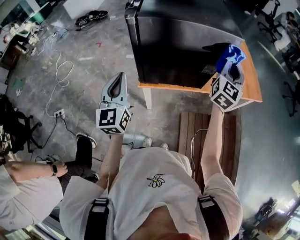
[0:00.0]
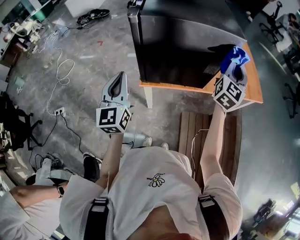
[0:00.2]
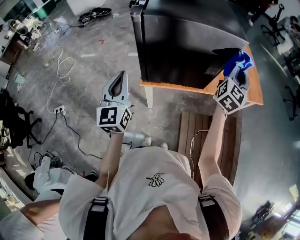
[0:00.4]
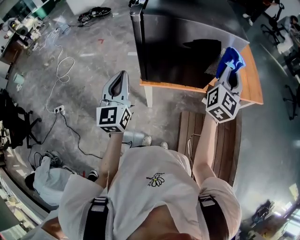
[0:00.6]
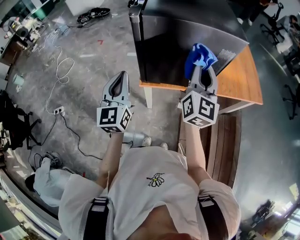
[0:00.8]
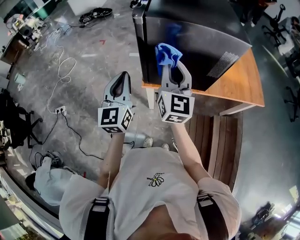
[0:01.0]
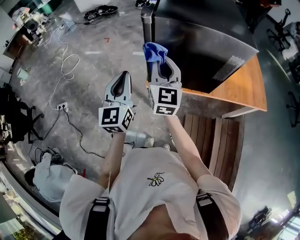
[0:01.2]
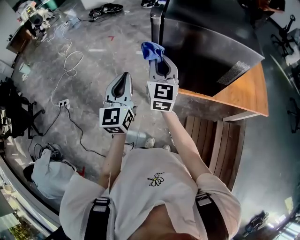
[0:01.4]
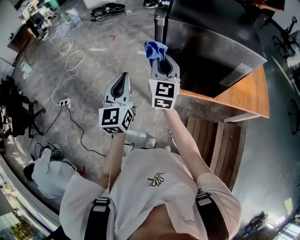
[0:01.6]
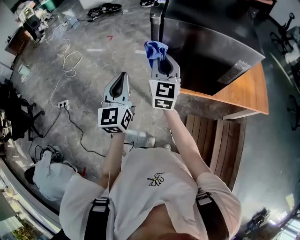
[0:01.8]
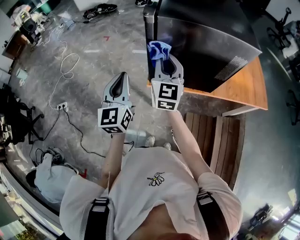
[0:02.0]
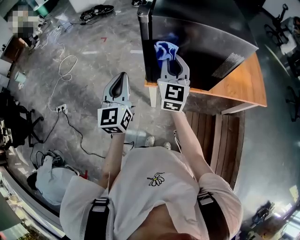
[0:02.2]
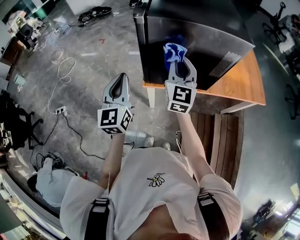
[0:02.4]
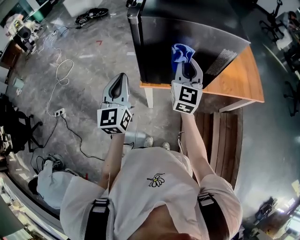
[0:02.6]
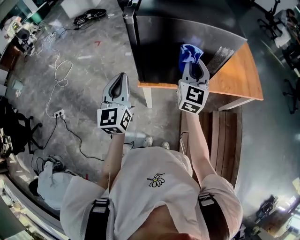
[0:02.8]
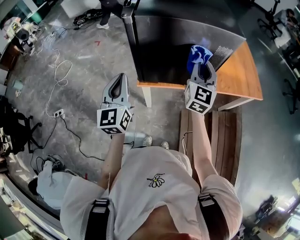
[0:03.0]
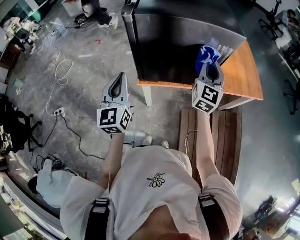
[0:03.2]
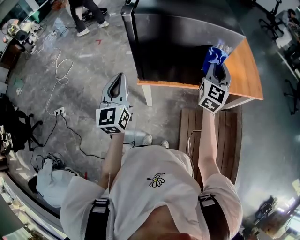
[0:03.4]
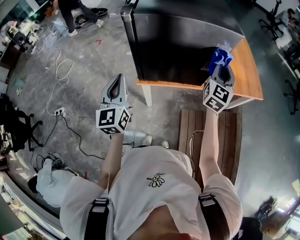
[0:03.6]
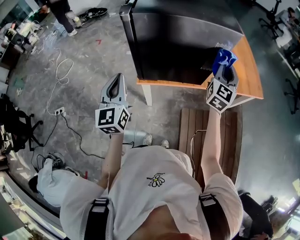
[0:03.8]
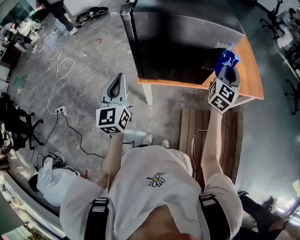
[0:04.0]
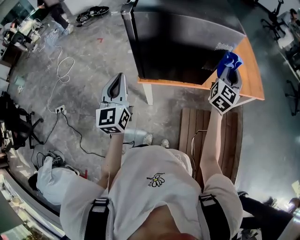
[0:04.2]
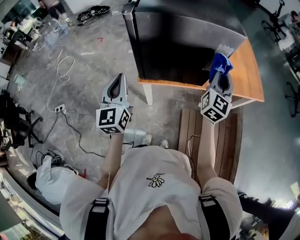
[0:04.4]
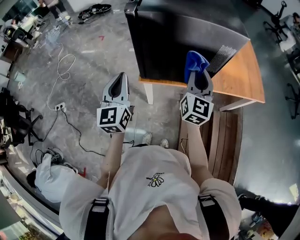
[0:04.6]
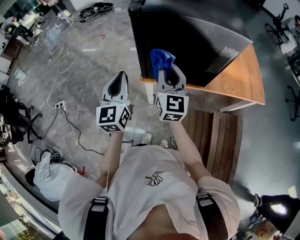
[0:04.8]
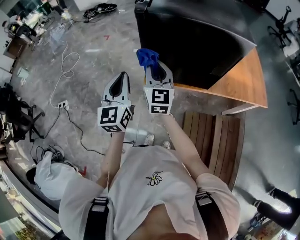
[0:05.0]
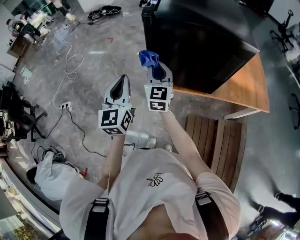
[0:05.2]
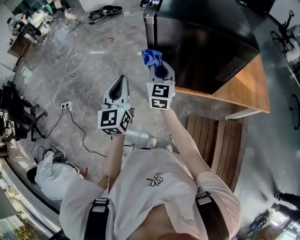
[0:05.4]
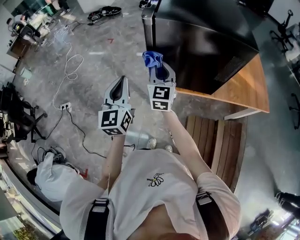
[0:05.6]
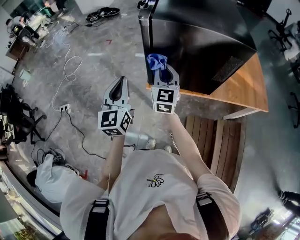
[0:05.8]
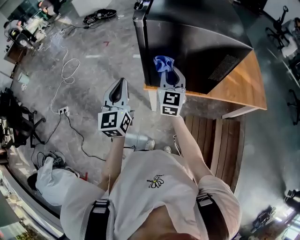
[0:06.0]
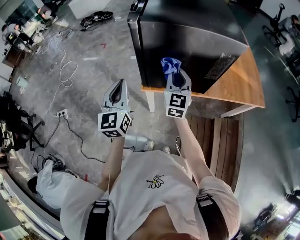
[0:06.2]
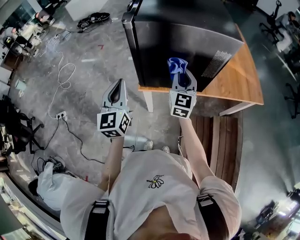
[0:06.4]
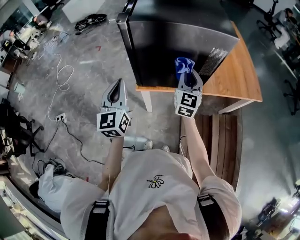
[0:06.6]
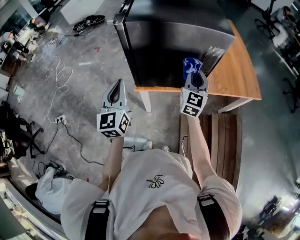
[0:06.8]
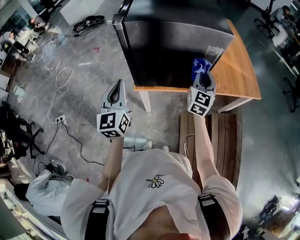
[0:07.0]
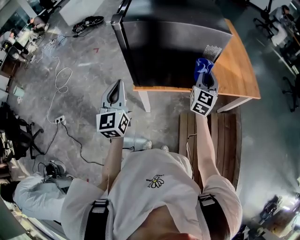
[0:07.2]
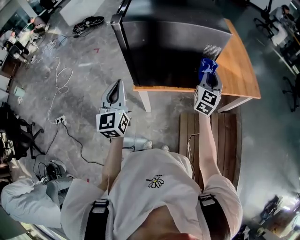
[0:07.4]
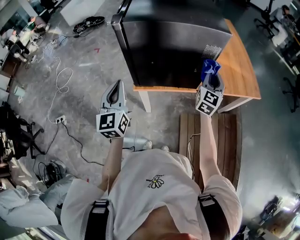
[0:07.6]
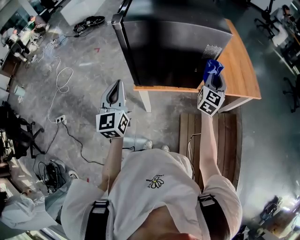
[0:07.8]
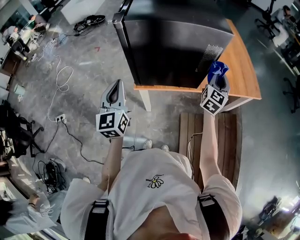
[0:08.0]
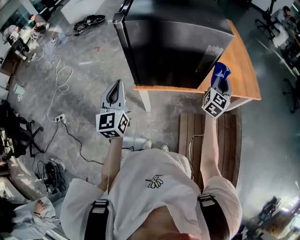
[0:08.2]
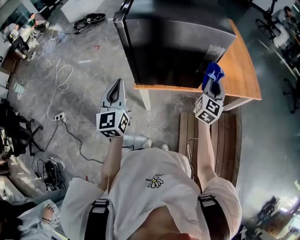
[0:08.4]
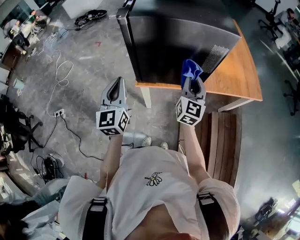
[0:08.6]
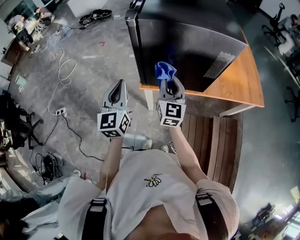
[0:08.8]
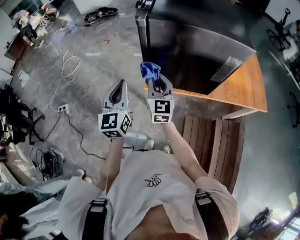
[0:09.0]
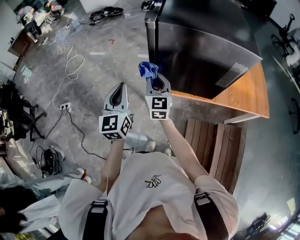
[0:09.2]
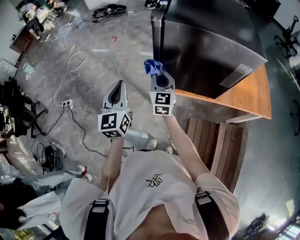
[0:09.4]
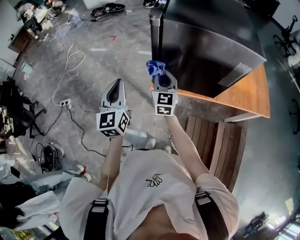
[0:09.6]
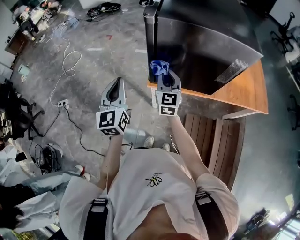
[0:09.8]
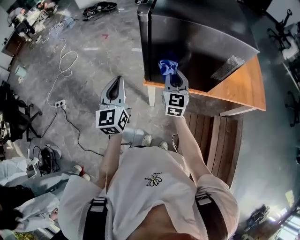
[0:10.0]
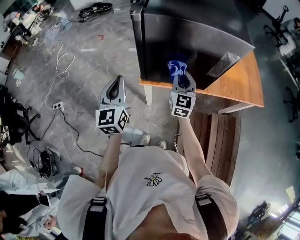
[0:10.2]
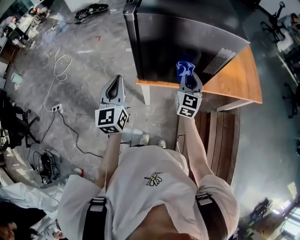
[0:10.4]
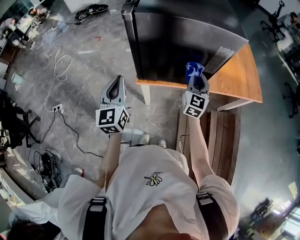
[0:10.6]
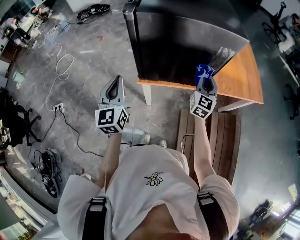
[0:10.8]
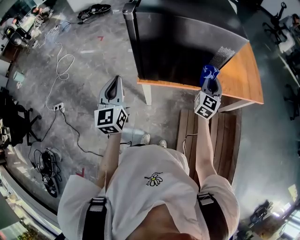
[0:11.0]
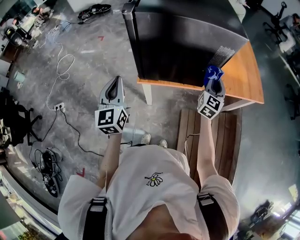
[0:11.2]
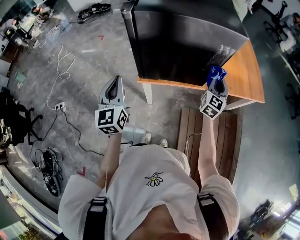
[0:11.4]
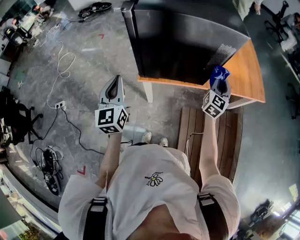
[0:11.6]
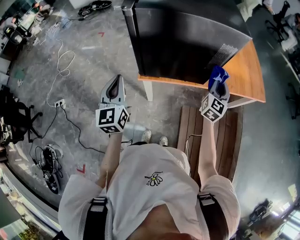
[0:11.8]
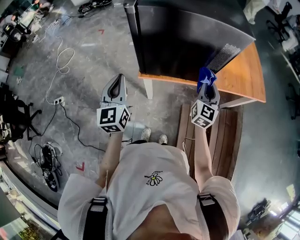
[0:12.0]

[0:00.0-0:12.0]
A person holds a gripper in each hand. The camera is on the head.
0:00.0 to 0:01.6: The right gripper is displaced to the left by about 35 cm, and swivels some 40 degrees. Meanwhile the left gripper shifts some 5 cm to the left.
0:01.6 to 0:03.0: The left gripper shifts approximately 5 cm to the right, while the right gripper moves to the right, about 25 cm, and turns by approximately 20 degrees.
0:03.0 to 0:04.4: The right gripper shifts about 10 cm to the right.
0:04.4 to 0:06.0: The right gripper heads to the left, covering some 25 cm, and changes its angle by some 30 degrees.
0:06.0 to 0:07.6: The left gripper goes some 5 cm to the right. Meanwhile the right gripper goes some 25 cm to the right, and changes its angle by about 30 degrees.
0:07.6 to 0:09.0: The right gripper moves to the left, approximately 35 cm, and changes its angle by approximately 40 degrees. The left gripper travels to the left by approximately 5 cm.
0:09.0 to 0:10.4: The right gripper goes some 20 cm to the right.
0:10.4 to 0:12.0: The right gripper moves to the right, approximately 10 cm.

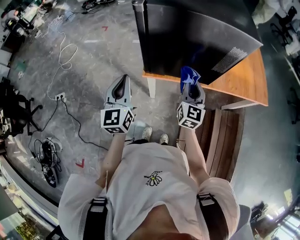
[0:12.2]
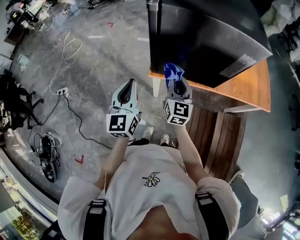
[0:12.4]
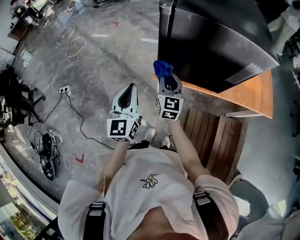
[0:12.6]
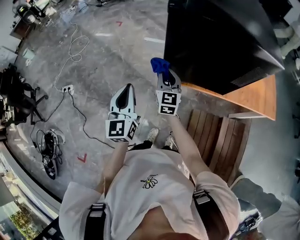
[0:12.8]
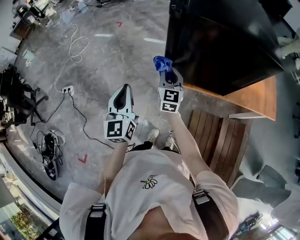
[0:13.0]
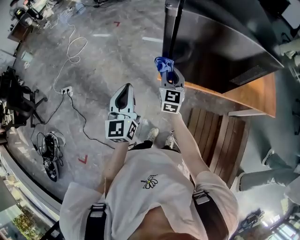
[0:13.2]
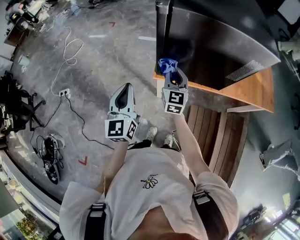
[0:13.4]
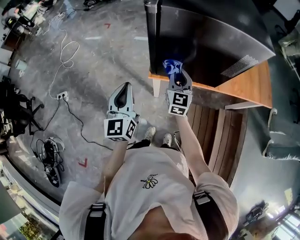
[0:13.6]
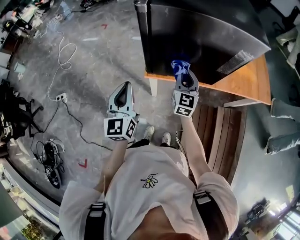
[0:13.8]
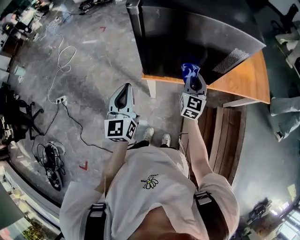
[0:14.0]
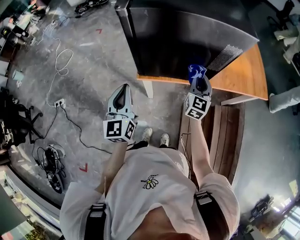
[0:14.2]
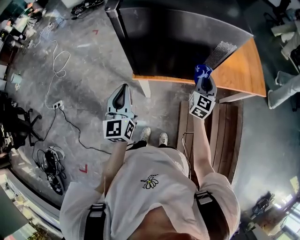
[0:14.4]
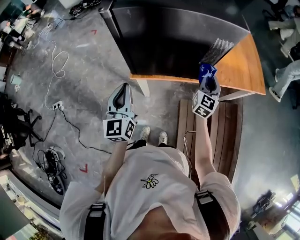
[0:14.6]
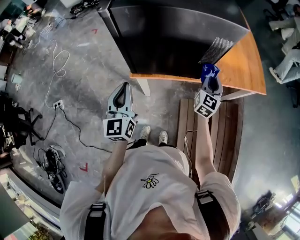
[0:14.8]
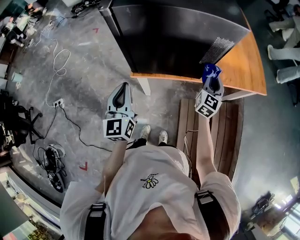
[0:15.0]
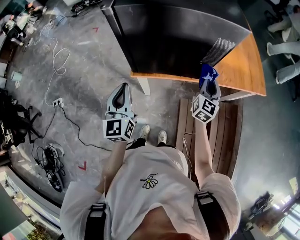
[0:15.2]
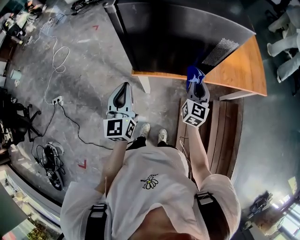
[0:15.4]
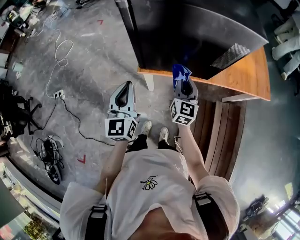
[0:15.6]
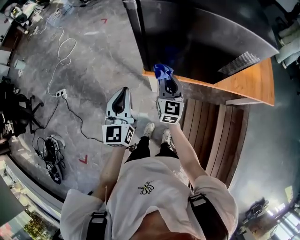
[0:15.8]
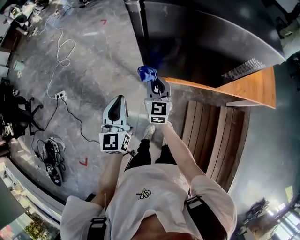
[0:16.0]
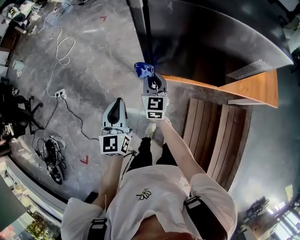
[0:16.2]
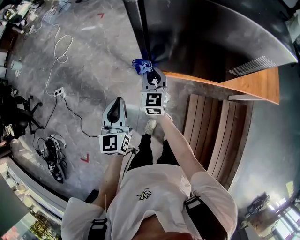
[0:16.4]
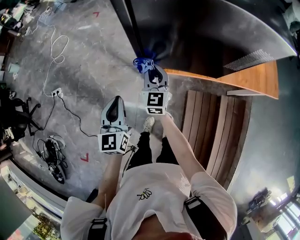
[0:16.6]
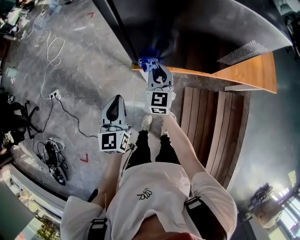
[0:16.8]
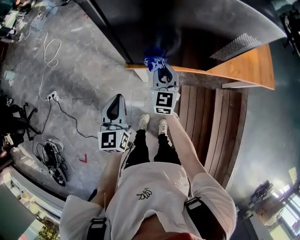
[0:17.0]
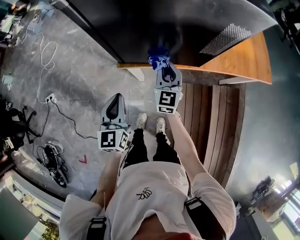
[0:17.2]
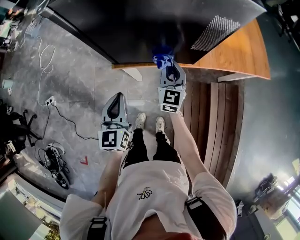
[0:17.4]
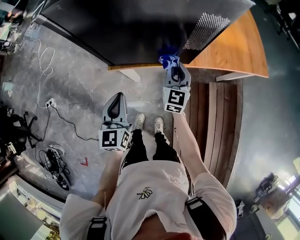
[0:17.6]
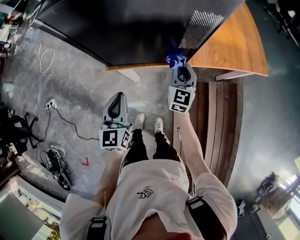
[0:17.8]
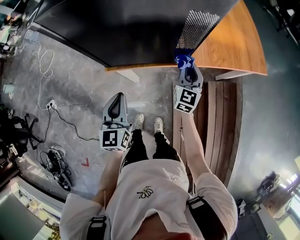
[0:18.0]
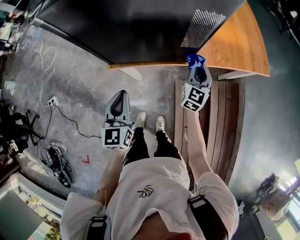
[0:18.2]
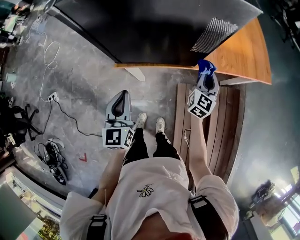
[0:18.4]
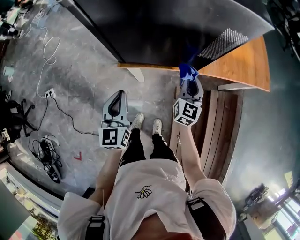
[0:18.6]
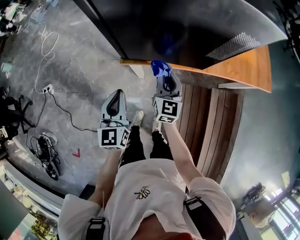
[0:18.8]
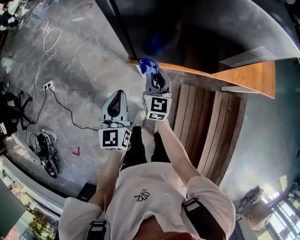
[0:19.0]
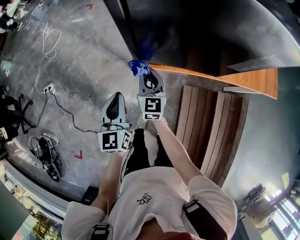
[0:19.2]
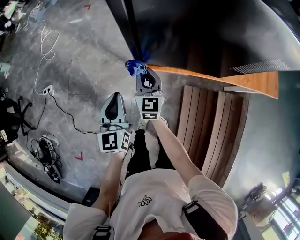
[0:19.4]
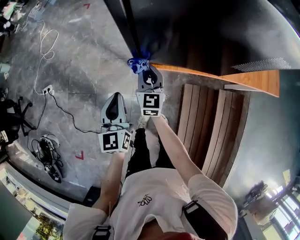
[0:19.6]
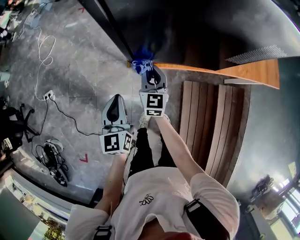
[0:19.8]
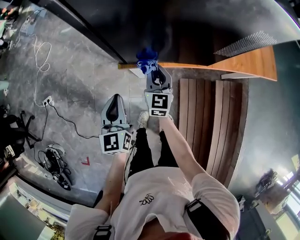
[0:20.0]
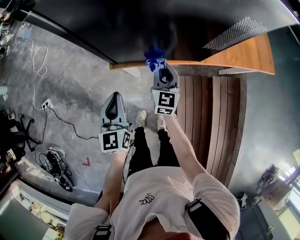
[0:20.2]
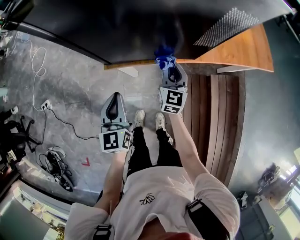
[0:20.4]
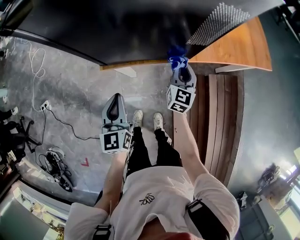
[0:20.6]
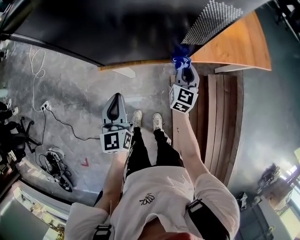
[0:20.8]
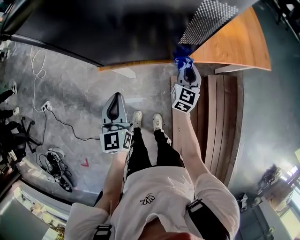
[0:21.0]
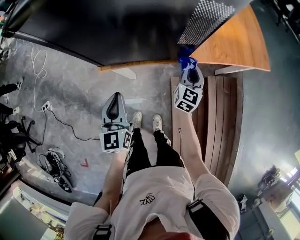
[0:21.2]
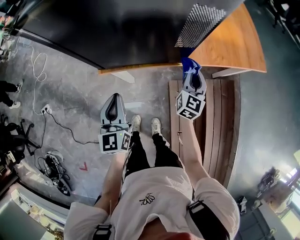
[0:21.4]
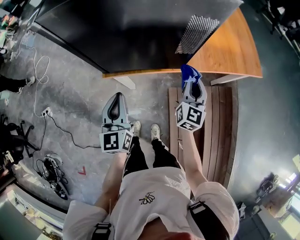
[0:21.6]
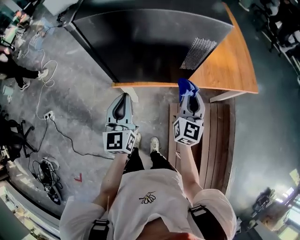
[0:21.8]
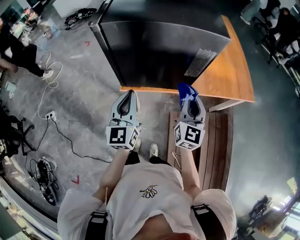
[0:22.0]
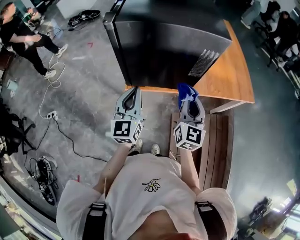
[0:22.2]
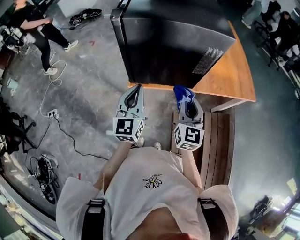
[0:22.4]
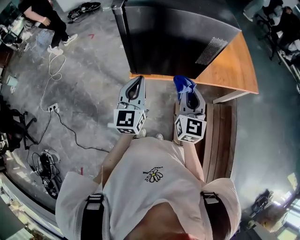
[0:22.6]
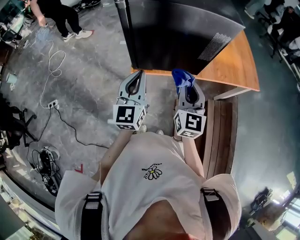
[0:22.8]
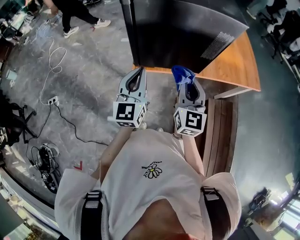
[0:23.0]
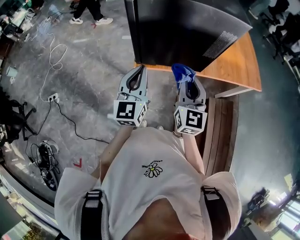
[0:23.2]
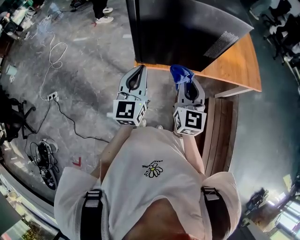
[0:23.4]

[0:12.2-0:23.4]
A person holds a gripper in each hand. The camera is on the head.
0:12.2 to 0:13.8: The right gripper goes approximately 5 cm forward, and moves approximately 20 cm to the left and comes back; the left gripper moves approximately 10 cm to the left and comes back.
0:13.8 to 0:15.4: The right gripper travels to the right by approximately 15 cm, while the left gripper shifts about 5 cm to the right.
0:15.4 to 0:17.0: The left gripper moves downward, approximately 10 cm, and travels to the left and back again, about 10 cm each way; the right gripper heads to the left and forward, covering roughly 15 cm.
0:17.0 to 0:18.6: The right gripper shifts approximately 15 cm to the right. The left gripper is displaced to the right by some 5 cm.
0:18.6 to 0:20.2: The right gripper travels to the left and downward by some 15 cm; the left gripper moves downward, about 5 cm, and goes to the left and returns, about 10 cm each way.
0:20.2 to 0:21.8: The right gripper is displaced to the right and upward by roughly 25 cm; the left gripper shifts some 15 cm upward and to the right.
0:21.8 to 0:23.4: The left gripper travels to the left by about 5 cm, while the right gripper travels to the left, upward and backward by approximately 15 cm.
